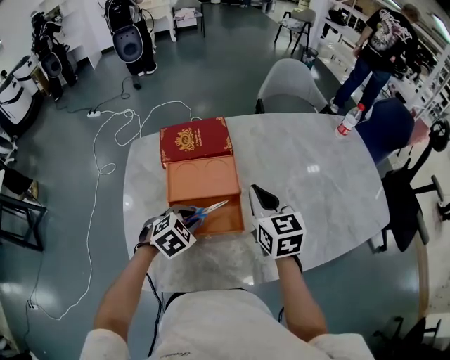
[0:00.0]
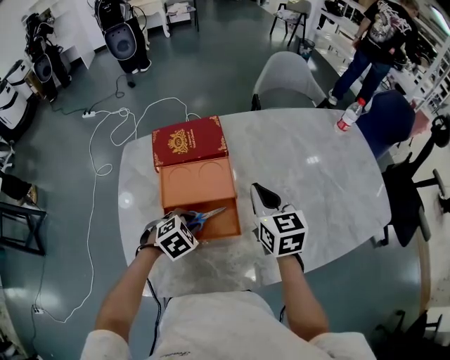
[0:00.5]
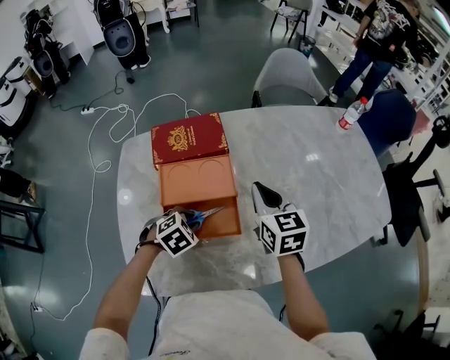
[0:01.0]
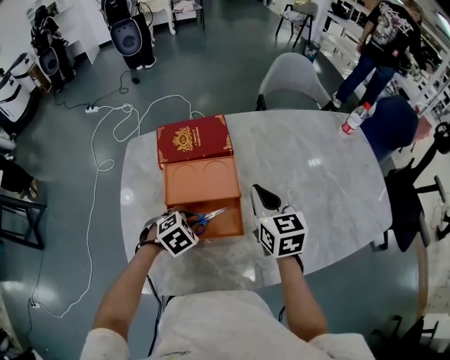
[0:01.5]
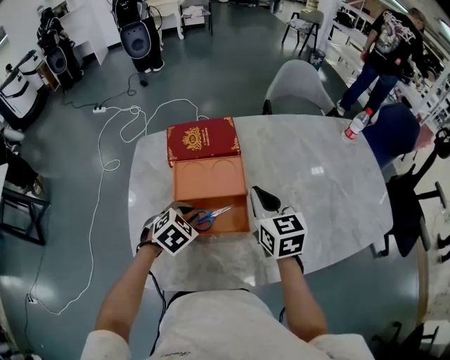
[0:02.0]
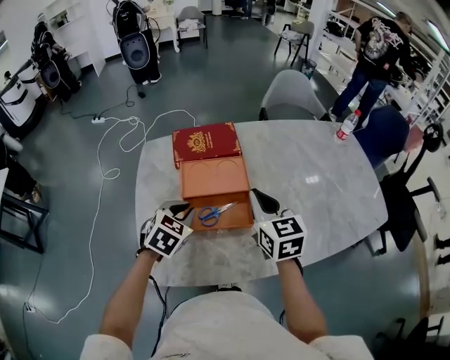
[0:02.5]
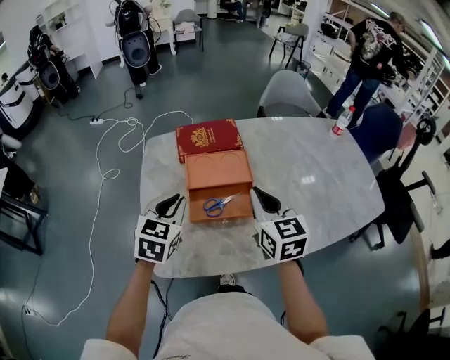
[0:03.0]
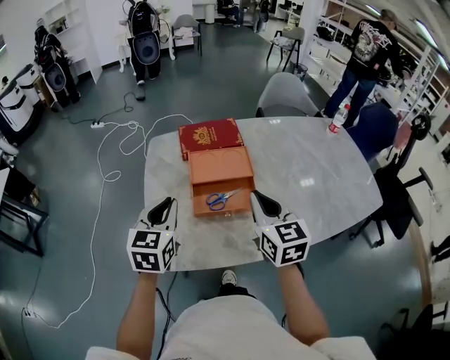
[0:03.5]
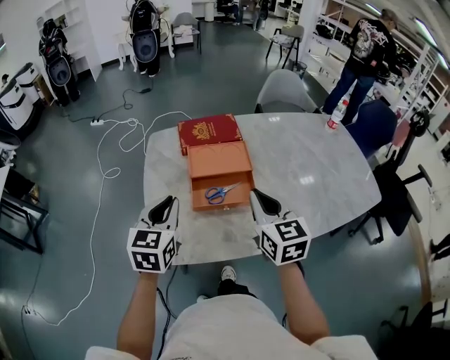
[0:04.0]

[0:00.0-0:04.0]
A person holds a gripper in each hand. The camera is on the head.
0:00.0 to 0:02.0: The grippers make only small movements.
0:02.0 to 0:04.0: The left gripper travels upward, backward and to the left by about 20 cm, and tips its fingers upward by roughly 40 degrees. The right gripper moves backward and upward, some 15 cm.

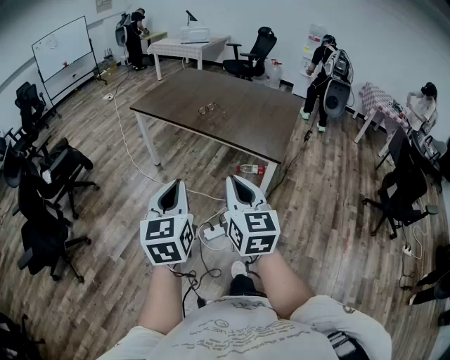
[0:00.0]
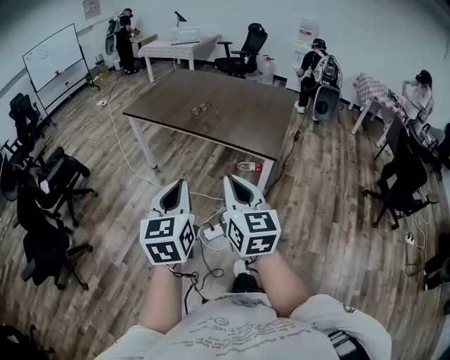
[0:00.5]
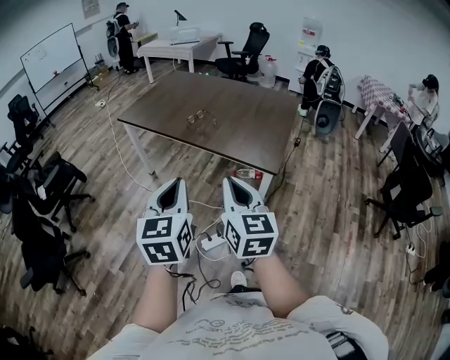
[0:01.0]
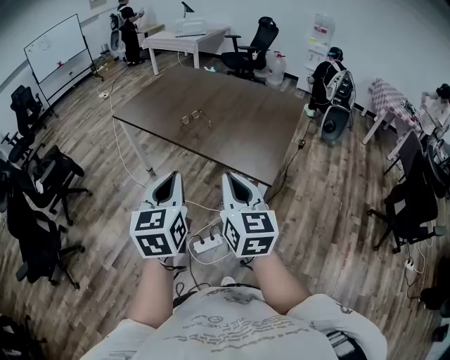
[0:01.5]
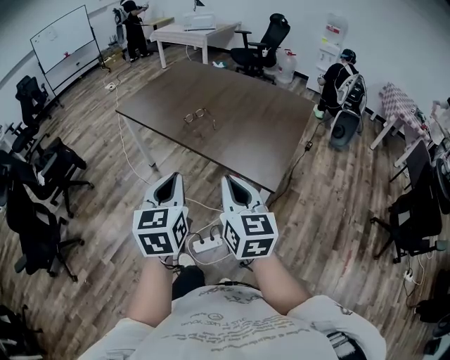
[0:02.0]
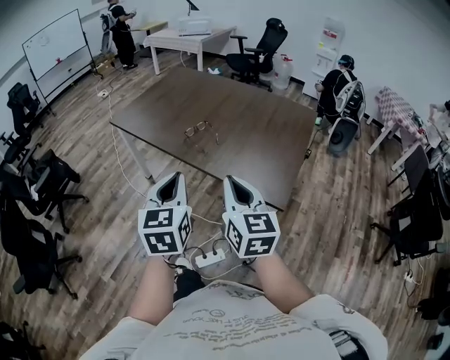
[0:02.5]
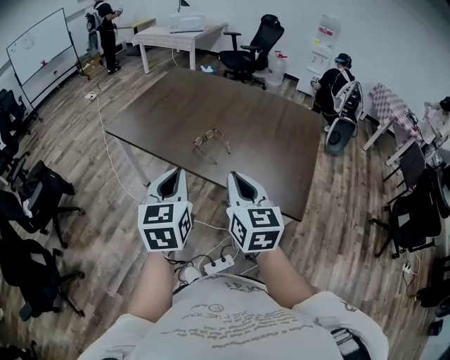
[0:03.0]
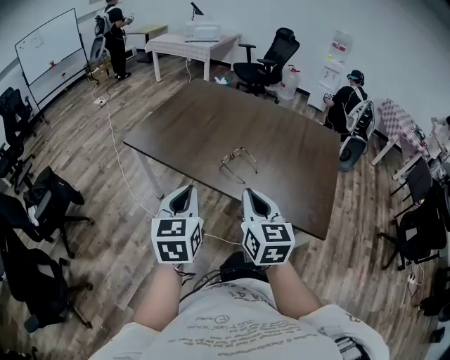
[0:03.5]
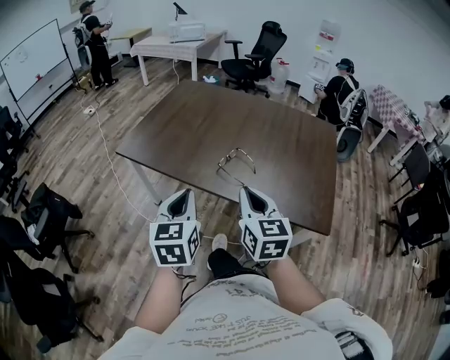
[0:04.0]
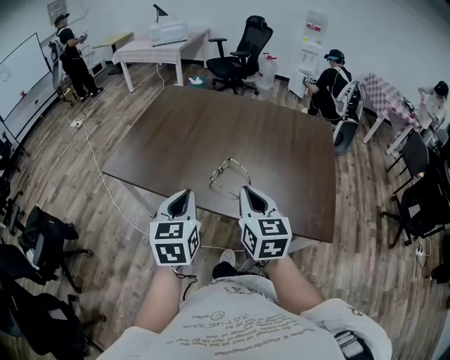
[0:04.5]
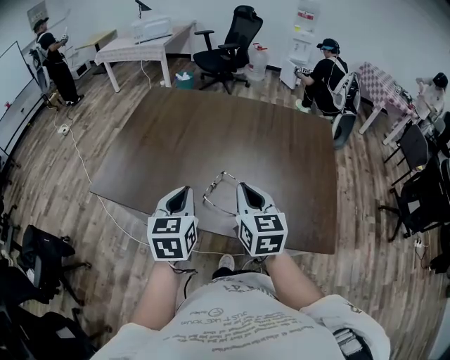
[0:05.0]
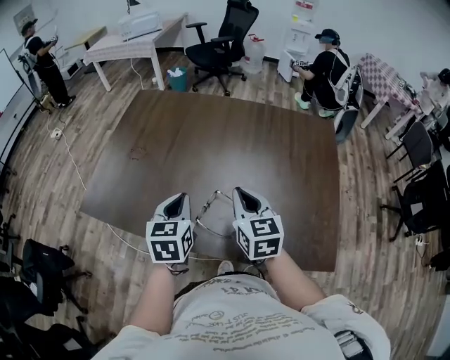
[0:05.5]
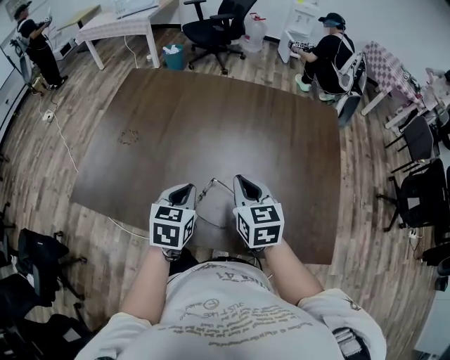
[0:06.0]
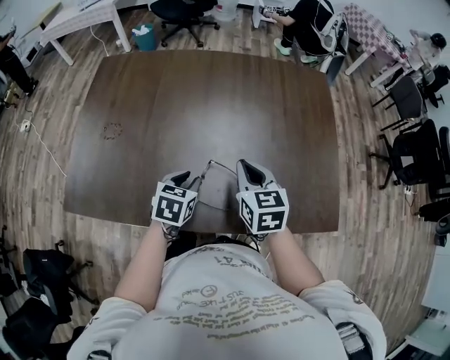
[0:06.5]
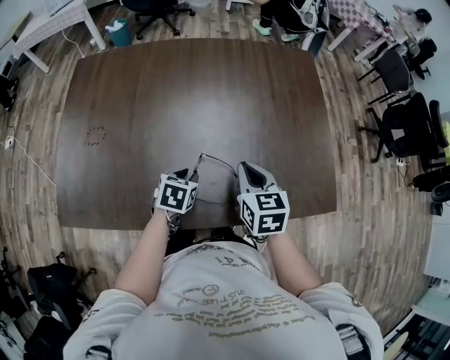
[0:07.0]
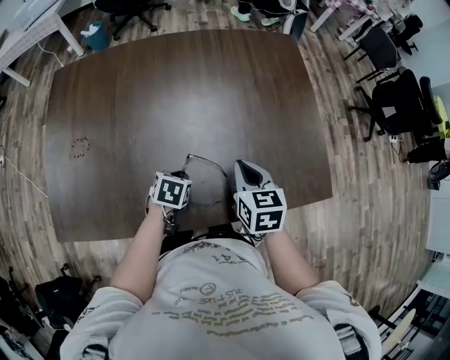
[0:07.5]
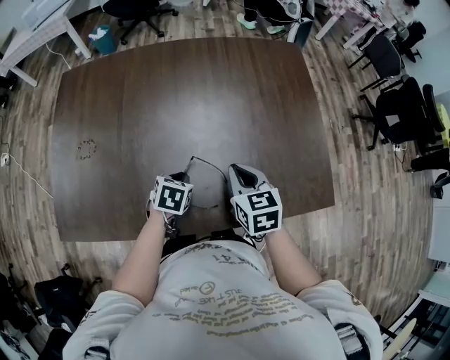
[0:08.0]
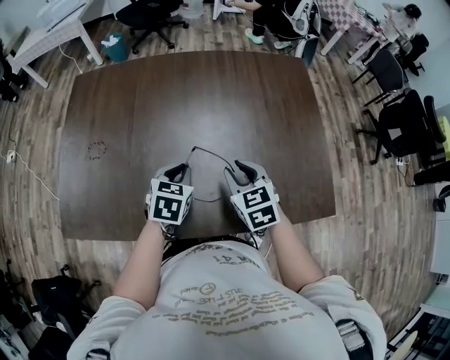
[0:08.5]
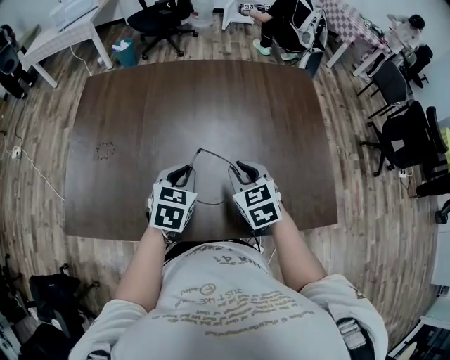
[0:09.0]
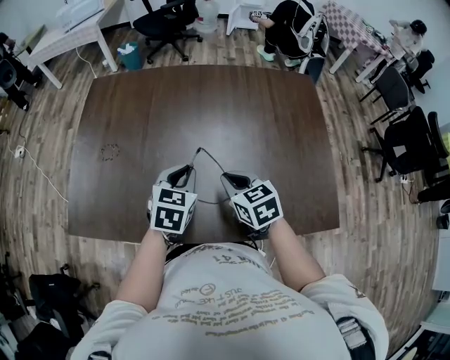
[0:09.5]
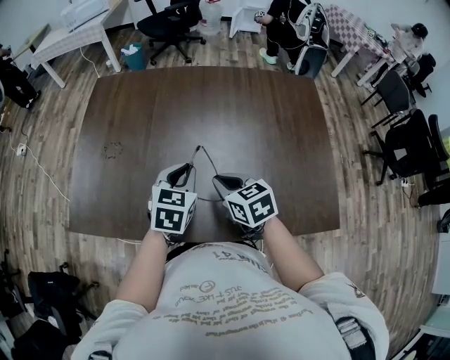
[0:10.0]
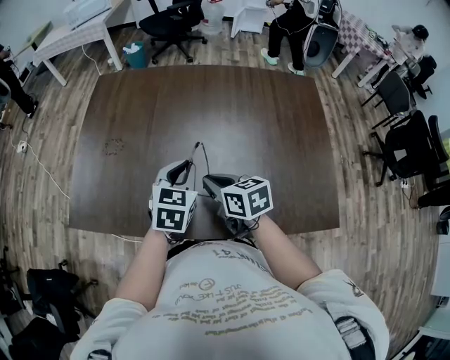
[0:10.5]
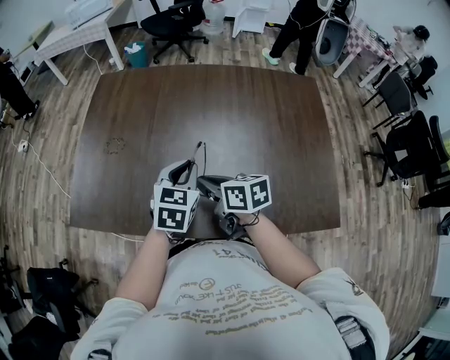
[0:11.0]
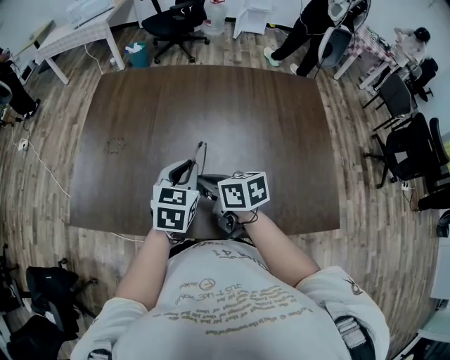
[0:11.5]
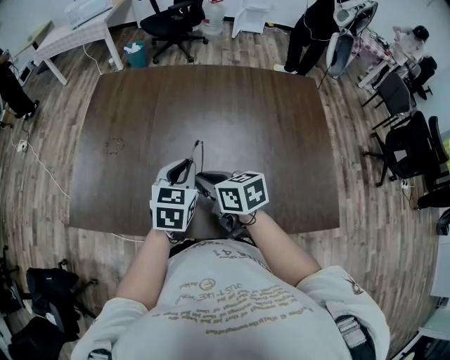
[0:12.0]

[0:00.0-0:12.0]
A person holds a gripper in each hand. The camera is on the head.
0:00.0 to 0:02.0: Both grippers travel together forward and to the right, approximately 25 cm.
0:02.0 to 0:04.0: The two grippers go roughly 35 cm forward and to the left.
0:04.0 to 0:06.0: Both grippers move forward, about 35 cm. The left gripper swivels roughly 30 degrees.
0:06.0 to 0:08.0: The right gripper shifts approximately 5 cm downward, while the left gripper is displaced downward by roughly 15 cm, and rotates approximately 30 degrees.
0:08.0 to 0:10.0: The left gripper travels upward by about 15 cm, and turns by some 30 degrees. The right gripper moves to the left, roughly 10 cm, rotates approximately 20 degrees, and opens, then closes again.
0:10.0 to 0:12.0: The right gripper heads to the left, covering approximately 5 cm.

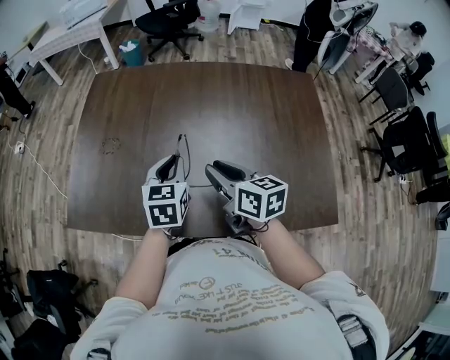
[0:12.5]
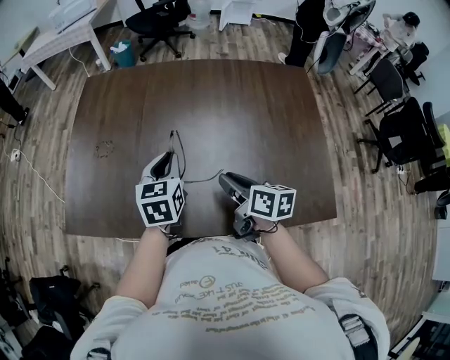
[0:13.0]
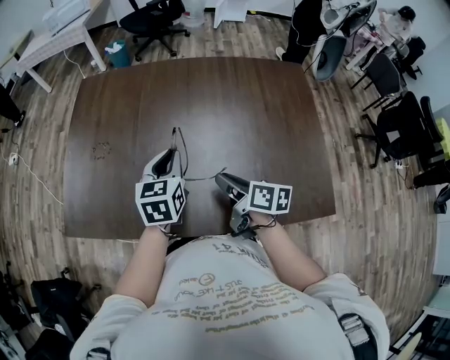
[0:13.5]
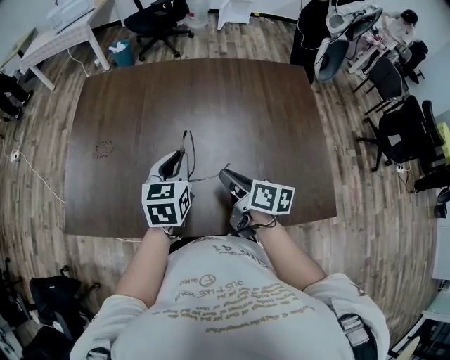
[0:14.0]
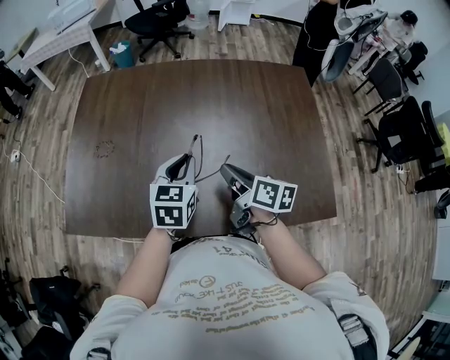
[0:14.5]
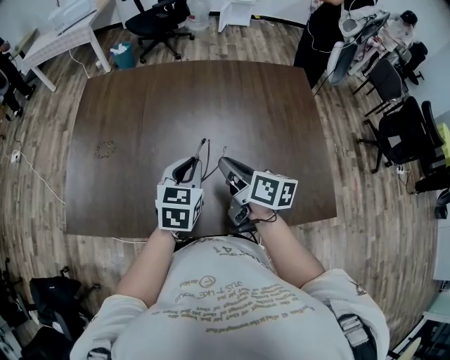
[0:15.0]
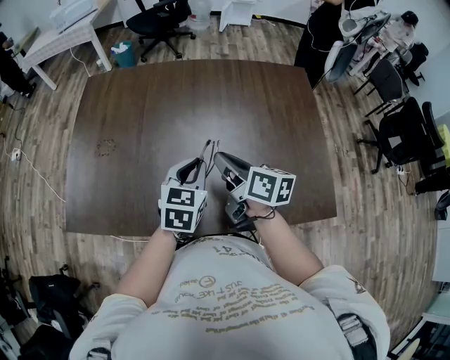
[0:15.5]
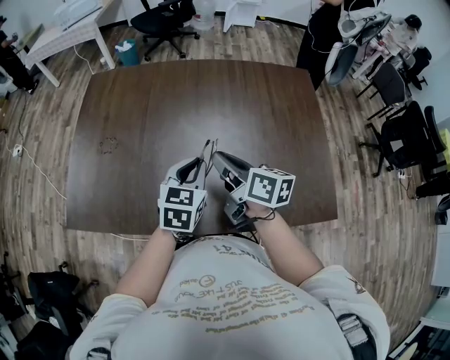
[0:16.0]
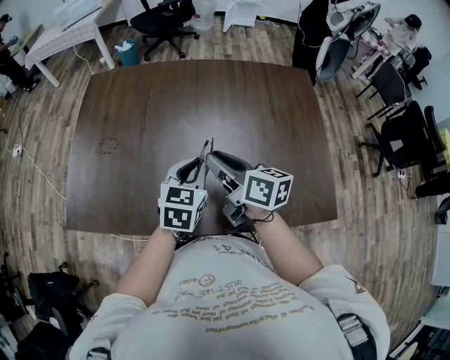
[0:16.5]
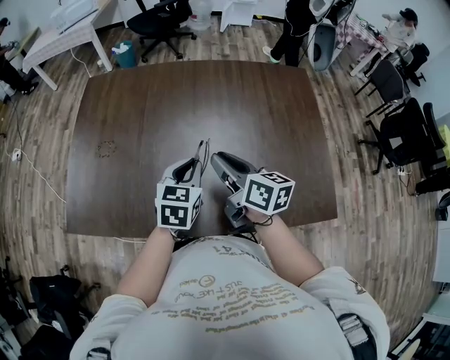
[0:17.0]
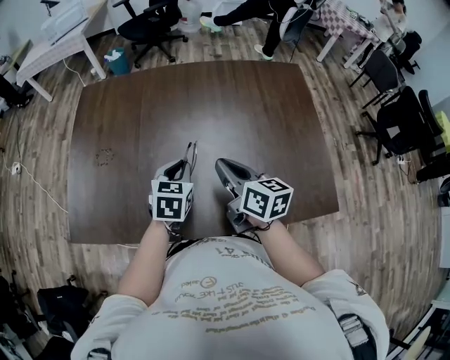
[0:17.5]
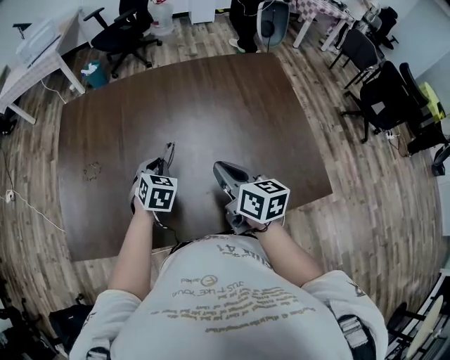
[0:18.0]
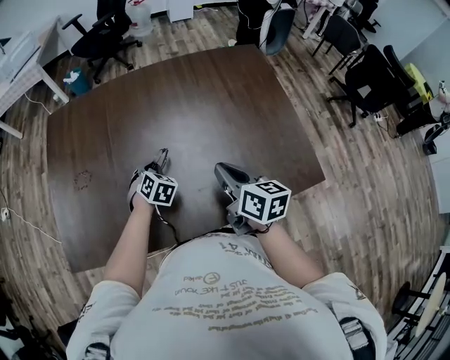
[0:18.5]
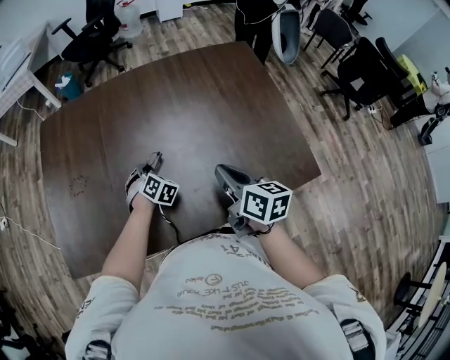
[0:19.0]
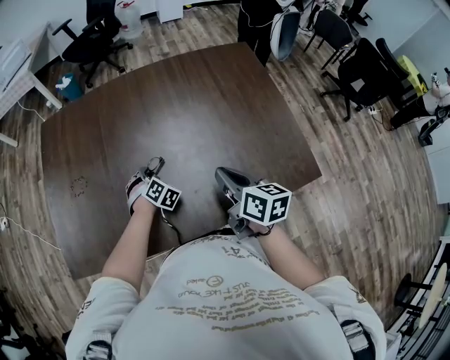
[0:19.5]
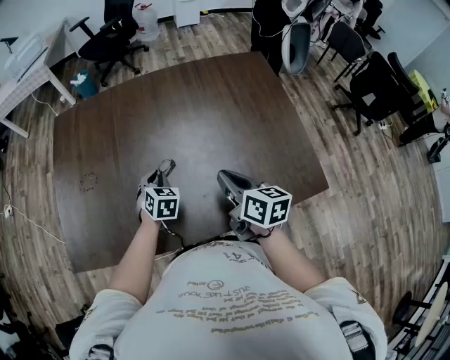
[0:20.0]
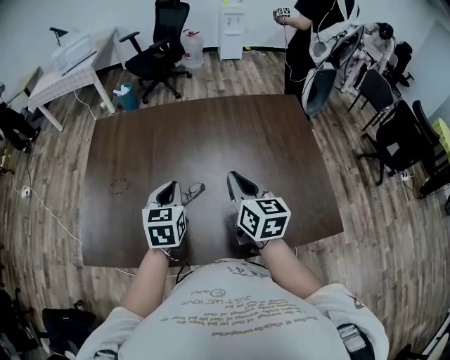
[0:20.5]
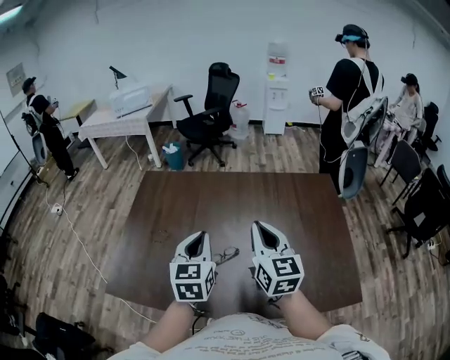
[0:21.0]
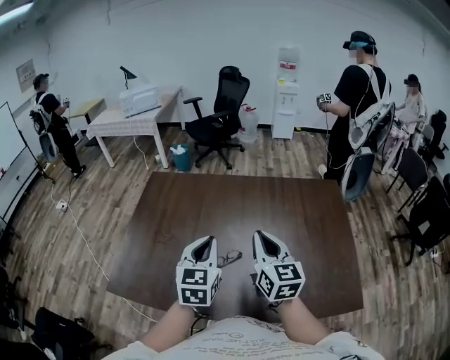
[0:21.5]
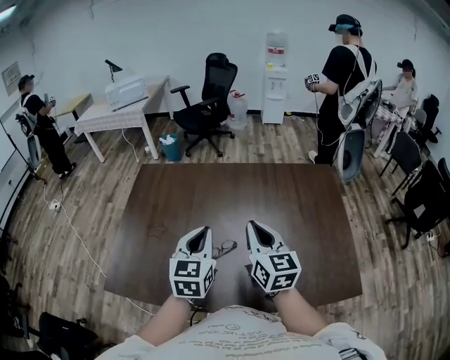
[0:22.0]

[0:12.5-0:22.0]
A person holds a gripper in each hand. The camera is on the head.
0:12.5 to 0:14.5: The right gripper is displaced to the right by approximately 5 cm, and changes its angle by roughly 20 degrees.
0:14.5 to 0:16.5: The right gripper goes approximately 5 cm upward.
0:16.5 to 0:18.0: The left gripper is displaced downward, forward and to the left by approximately 15 cm, and turns by roughly 30 degrees. The right gripper moves to the right, roughly 5 cm.
0:20.0 to 0:22.0: The right gripper goes about 20 cm upward, to the left and forward, and rotates approximately 30 degrees, while the left gripper is displaced upward by some 25 cm, and points its fingers roughly 30 degrees further upward.

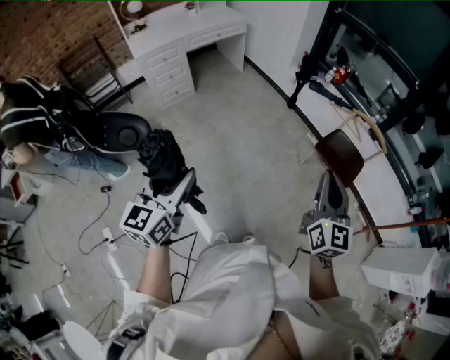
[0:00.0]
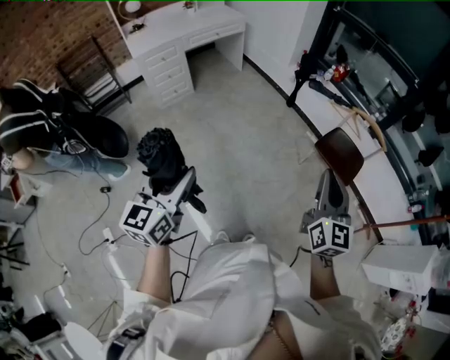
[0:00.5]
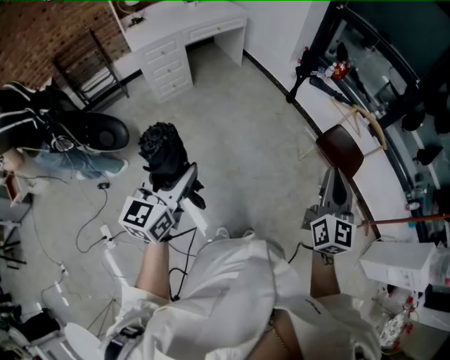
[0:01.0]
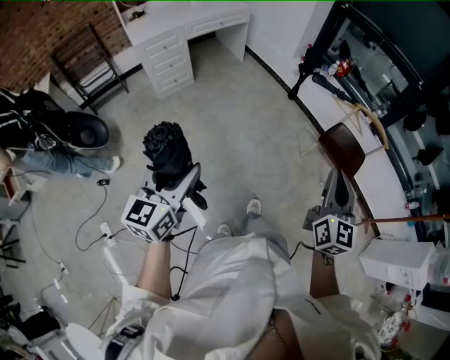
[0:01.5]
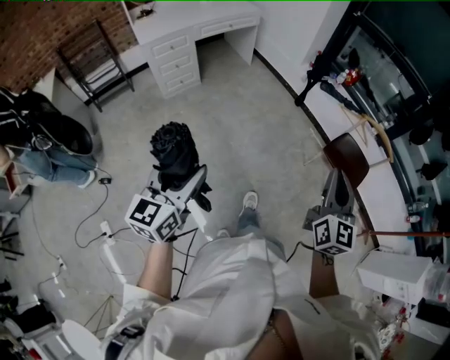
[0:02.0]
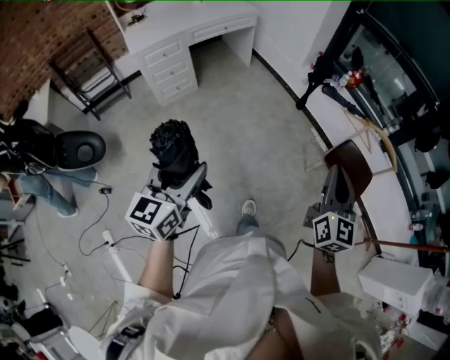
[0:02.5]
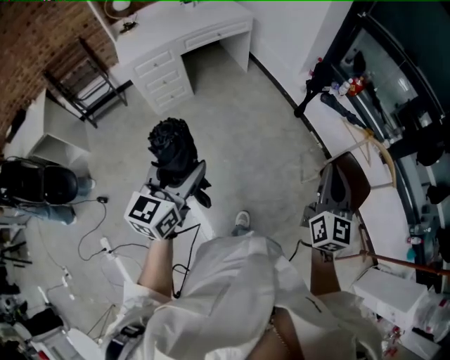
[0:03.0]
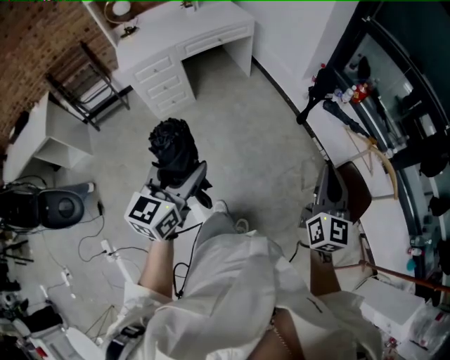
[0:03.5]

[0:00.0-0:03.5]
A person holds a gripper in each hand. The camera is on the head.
0:00.0 to 0:02.0: The right gripper goes some 10 cm to the left and forward. The left gripper is displaced to the left by about 5 cm.
0:02.0 to 0:03.5: The grippers both shift forward by roughly 30 cm.
